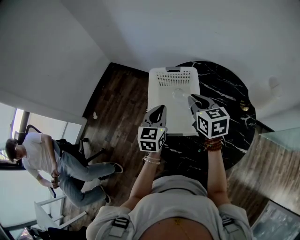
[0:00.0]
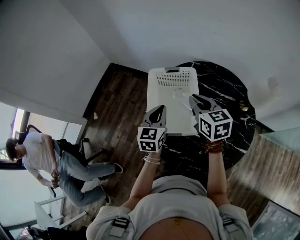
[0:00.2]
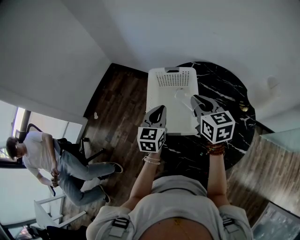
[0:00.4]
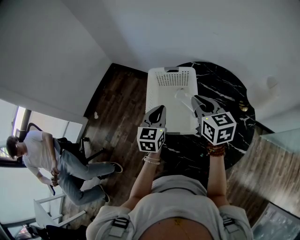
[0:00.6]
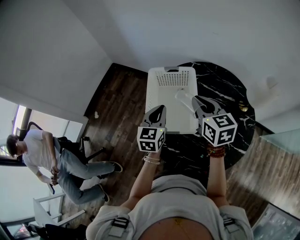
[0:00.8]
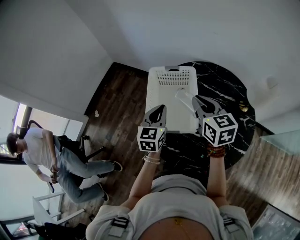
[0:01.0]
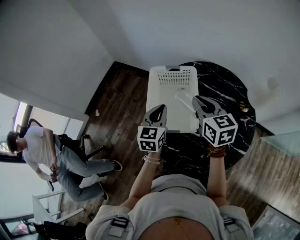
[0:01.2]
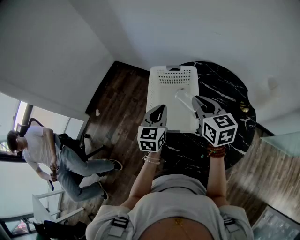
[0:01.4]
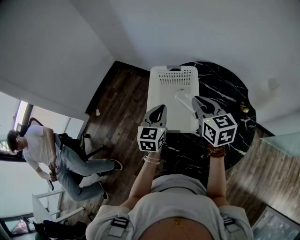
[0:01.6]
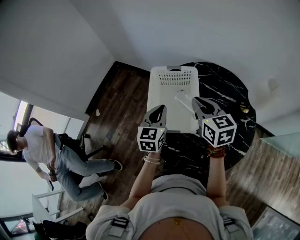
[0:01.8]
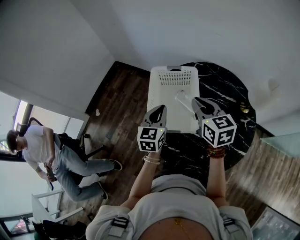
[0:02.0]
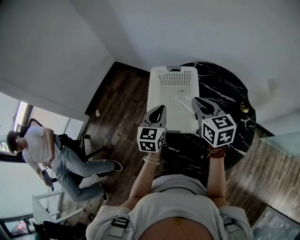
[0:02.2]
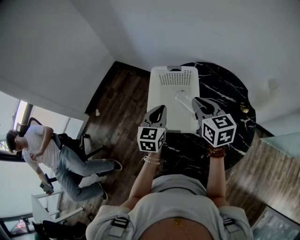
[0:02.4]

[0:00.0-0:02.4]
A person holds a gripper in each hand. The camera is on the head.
0:00.0 to 0:01.2: The right gripper moves some 5 cm.
0:01.2 to 0:02.4: Both grippers stay about where they are.

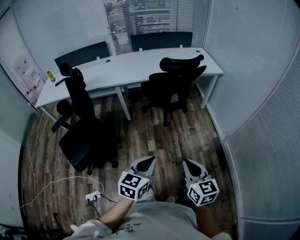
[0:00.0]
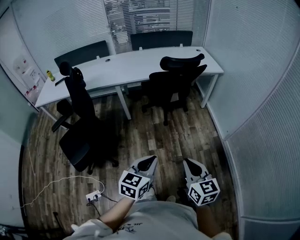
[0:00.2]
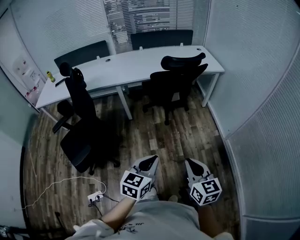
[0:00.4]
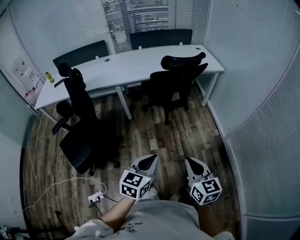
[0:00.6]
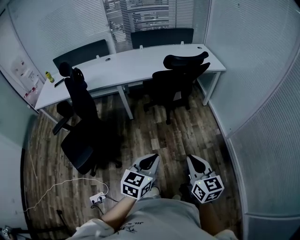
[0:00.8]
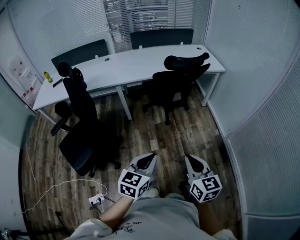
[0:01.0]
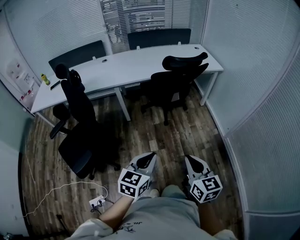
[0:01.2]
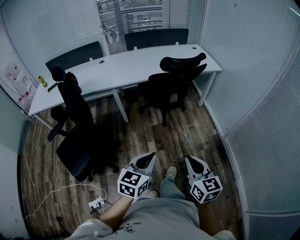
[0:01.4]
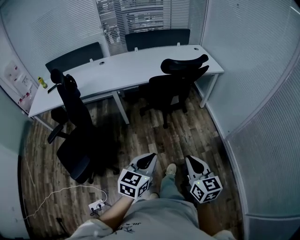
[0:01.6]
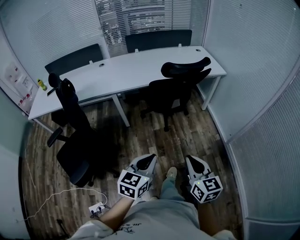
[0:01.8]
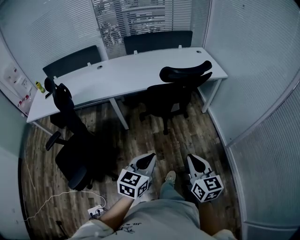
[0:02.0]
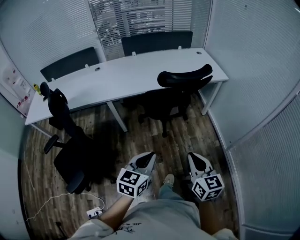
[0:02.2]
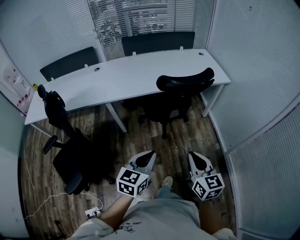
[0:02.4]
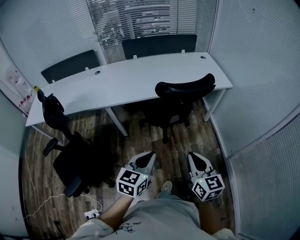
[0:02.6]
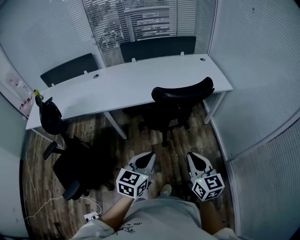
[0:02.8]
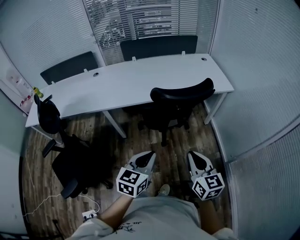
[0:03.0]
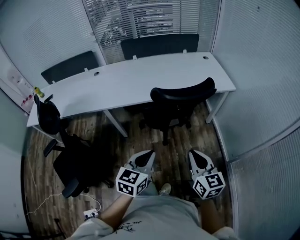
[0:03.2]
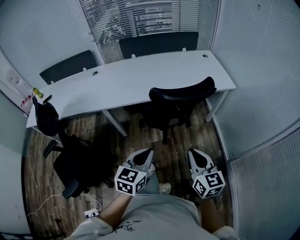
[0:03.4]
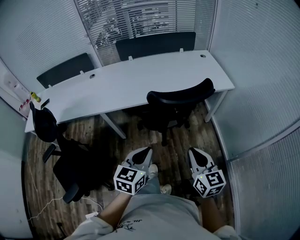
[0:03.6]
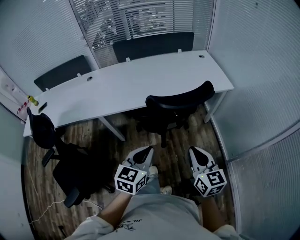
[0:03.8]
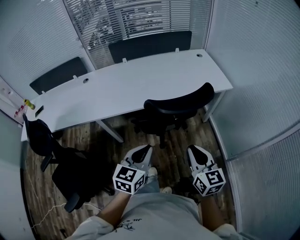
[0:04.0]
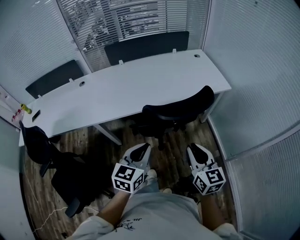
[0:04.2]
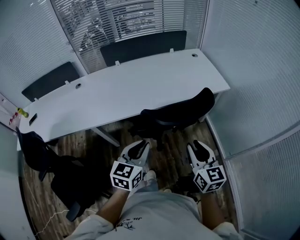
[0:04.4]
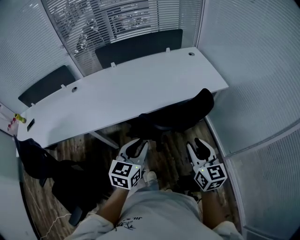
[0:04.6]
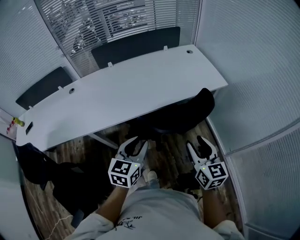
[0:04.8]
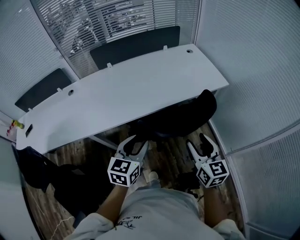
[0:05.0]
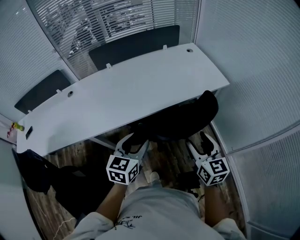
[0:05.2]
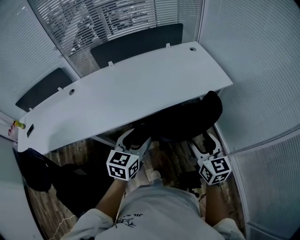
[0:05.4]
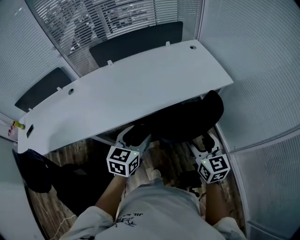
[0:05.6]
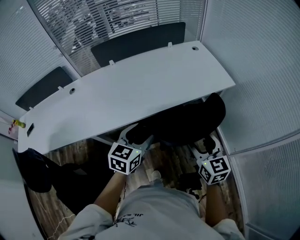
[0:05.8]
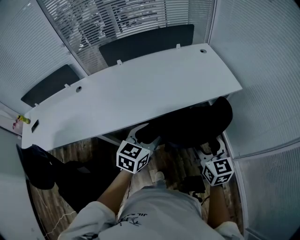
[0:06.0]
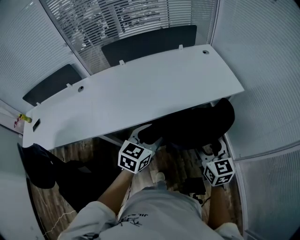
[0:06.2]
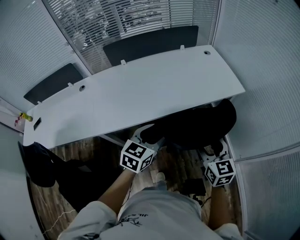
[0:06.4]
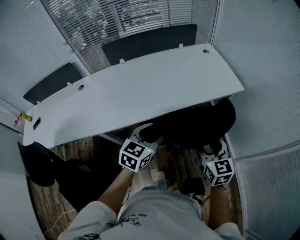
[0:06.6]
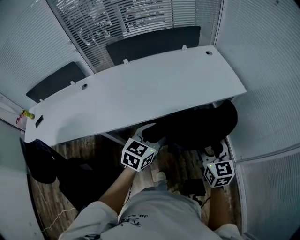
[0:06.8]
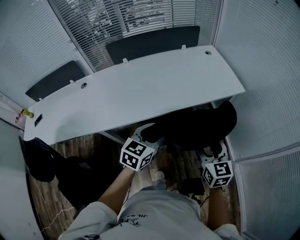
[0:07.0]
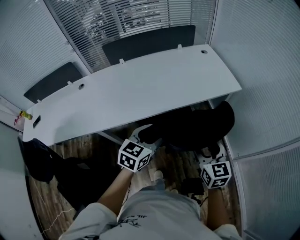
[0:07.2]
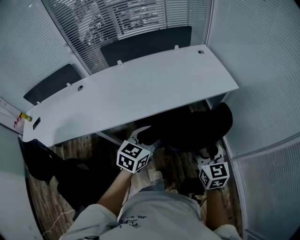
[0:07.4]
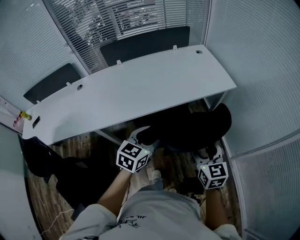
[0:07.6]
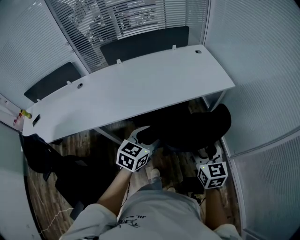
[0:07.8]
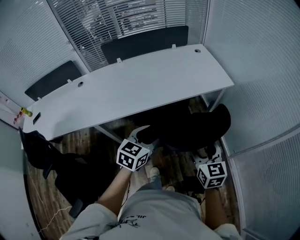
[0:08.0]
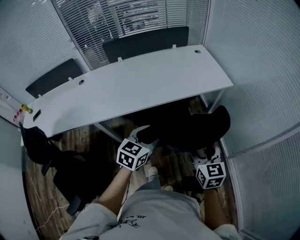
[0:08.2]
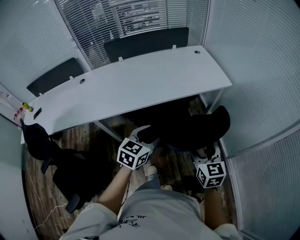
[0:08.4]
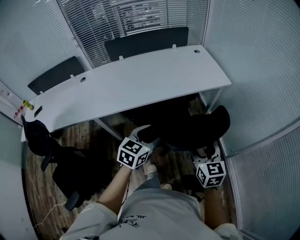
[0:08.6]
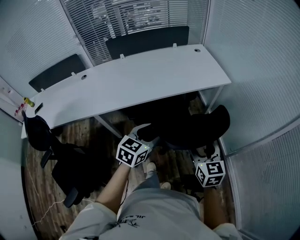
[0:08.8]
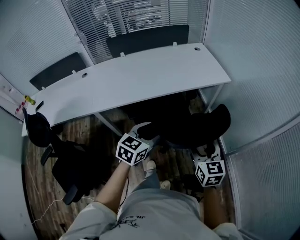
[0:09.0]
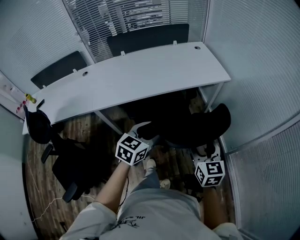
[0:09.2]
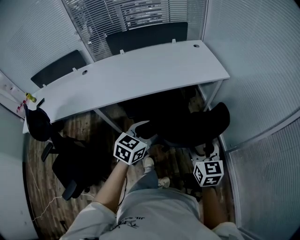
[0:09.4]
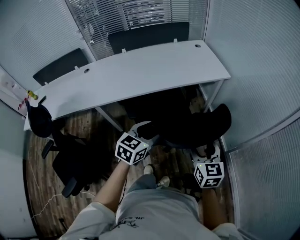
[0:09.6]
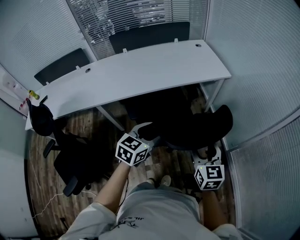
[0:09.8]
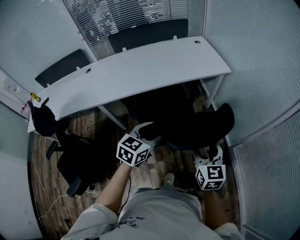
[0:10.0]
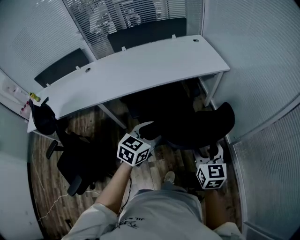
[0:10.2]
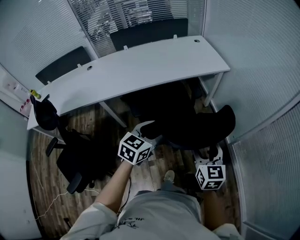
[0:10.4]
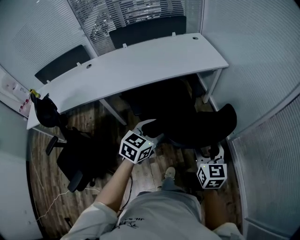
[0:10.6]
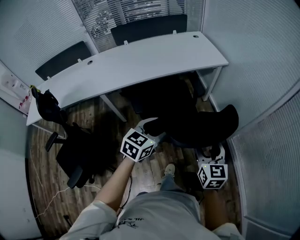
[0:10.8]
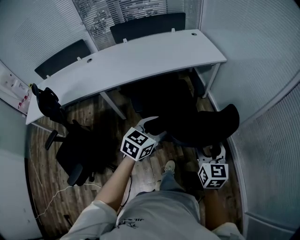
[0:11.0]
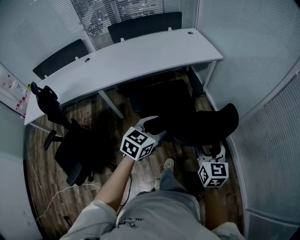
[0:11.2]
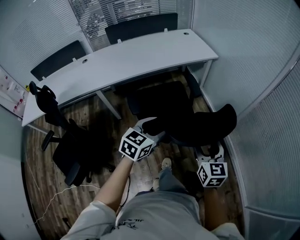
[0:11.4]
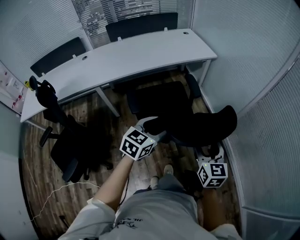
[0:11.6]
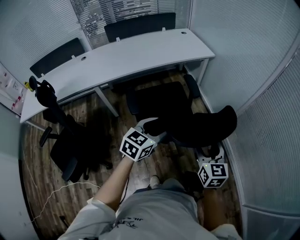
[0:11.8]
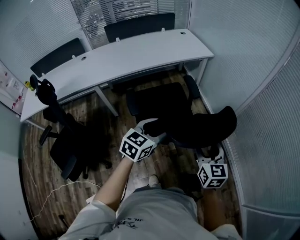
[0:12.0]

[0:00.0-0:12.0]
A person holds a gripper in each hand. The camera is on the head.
0:00.0 to 0:01.6: The left gripper travels forward and to the left by approximately 10 cm. The right gripper is displaced forward by about 10 cm.
0:01.6 to 0:03.0: Both grippers move forward, some 30 cm.
0:03.0 to 0:04.4: Both grippers travel together forward, approximately 15 cm.
0:04.4 to 0:06.0: The two grippers go approximately 15 cm forward. The left gripper opens up; the right gripper opens up.
0:06.0 to 0:07.6: The two grippers go about 5 cm backward.
0:07.6 to 0:09.0: The grippers both shift backward and to the right by about 10 cm.
0:09.0 to 0:10.4: The grippers both shift backward by about 10 cm.
0:10.4 to 0:12.0: The two grippers go approximately 20 cm backward and to the right.

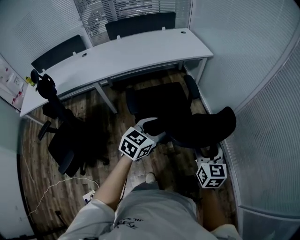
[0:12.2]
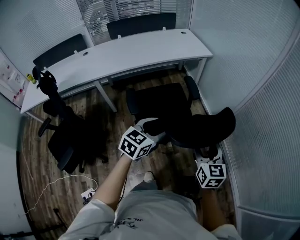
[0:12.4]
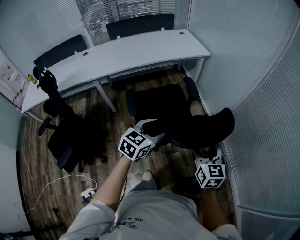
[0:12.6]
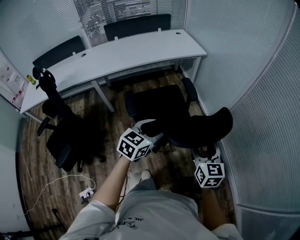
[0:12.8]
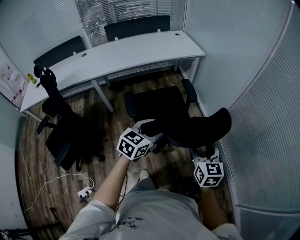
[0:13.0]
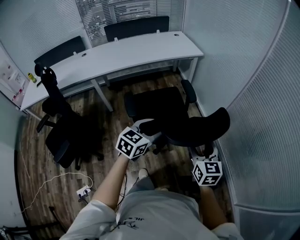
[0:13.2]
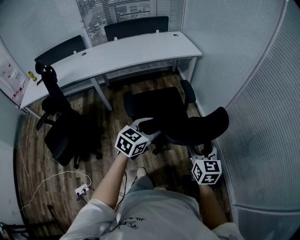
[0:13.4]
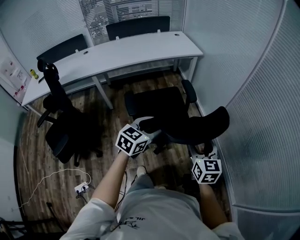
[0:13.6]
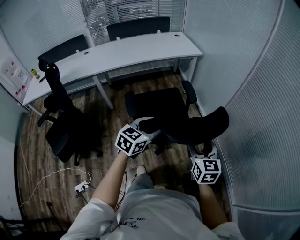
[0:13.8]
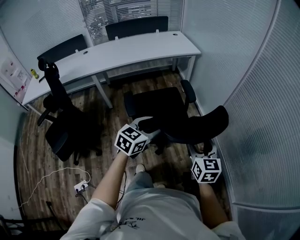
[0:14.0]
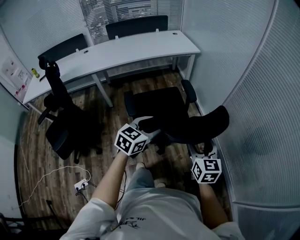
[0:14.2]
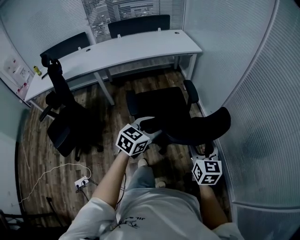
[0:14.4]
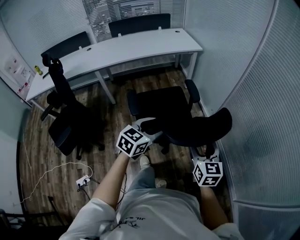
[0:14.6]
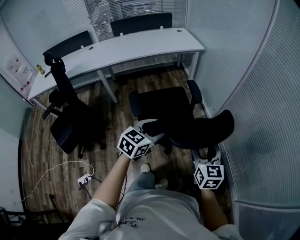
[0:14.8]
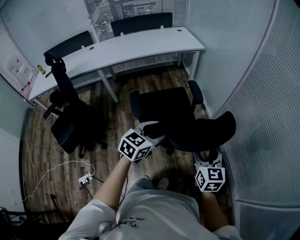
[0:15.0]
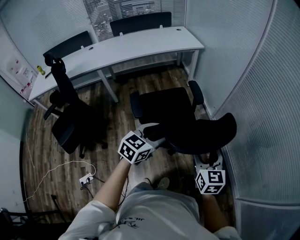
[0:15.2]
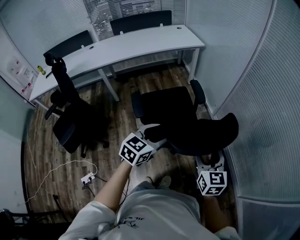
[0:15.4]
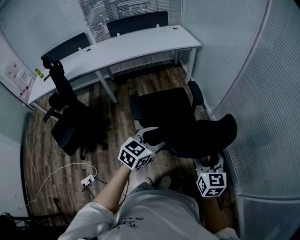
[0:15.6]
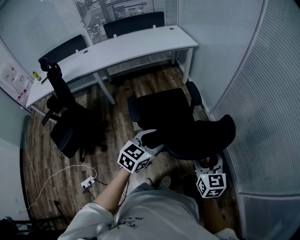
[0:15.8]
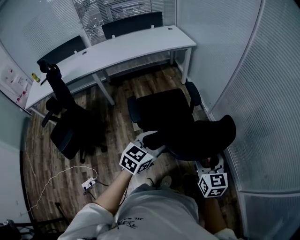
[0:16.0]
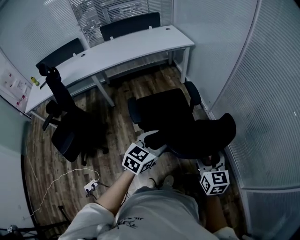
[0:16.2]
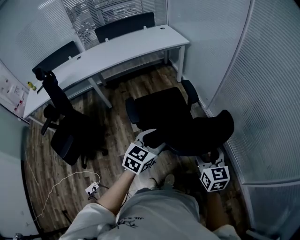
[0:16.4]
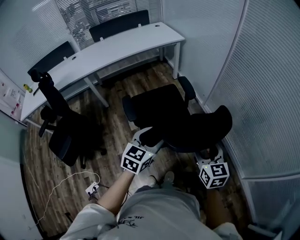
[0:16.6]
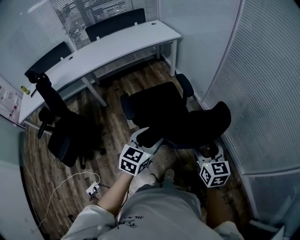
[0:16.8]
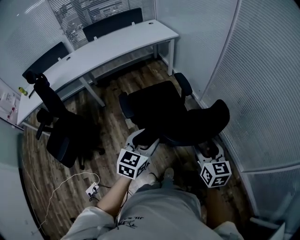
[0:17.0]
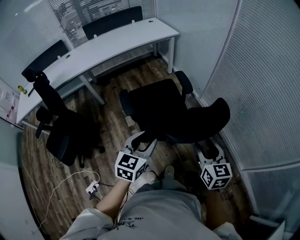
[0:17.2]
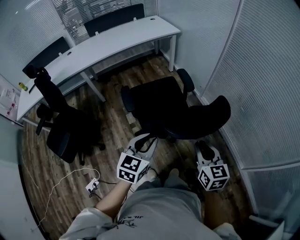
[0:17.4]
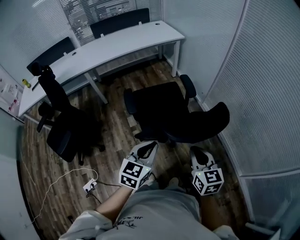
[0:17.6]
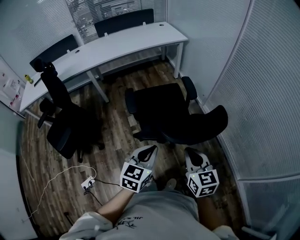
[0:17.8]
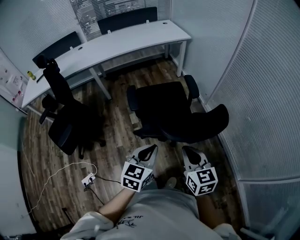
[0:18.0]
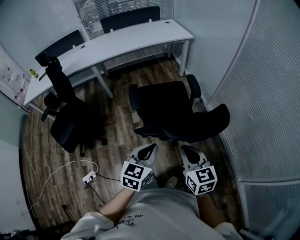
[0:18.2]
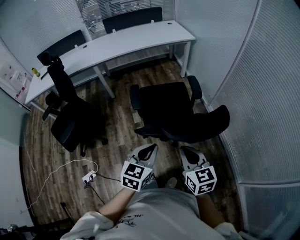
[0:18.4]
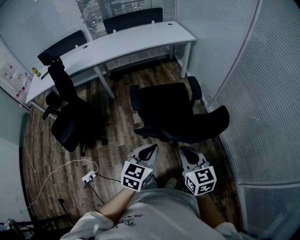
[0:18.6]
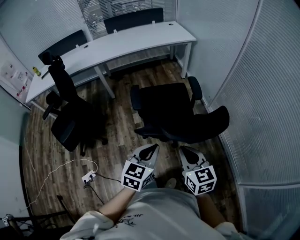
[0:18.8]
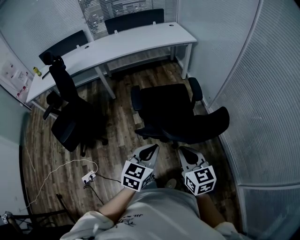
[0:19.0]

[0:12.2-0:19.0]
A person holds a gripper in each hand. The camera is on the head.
0:12.2 to 0:13.6: Both grippers travel together to the right and backward, about 15 cm.
0:13.6 to 0:15.0: Both grippers travel together backward and to the right, some 10 cm.
0:15.0 to 0:16.2: Both grippers travel together backward, some 5 cm.
0:16.2 to 0:17.6: The grippers both shift backward by roughly 10 cm. The right gripper closes up; the left gripper closes its fingers.
0:17.6 to 0:19.0: The right gripper is displaced to the left by approximately 5 cm.

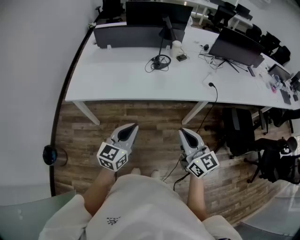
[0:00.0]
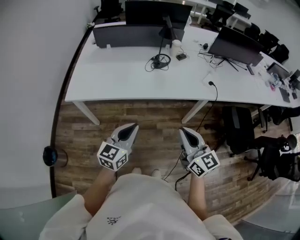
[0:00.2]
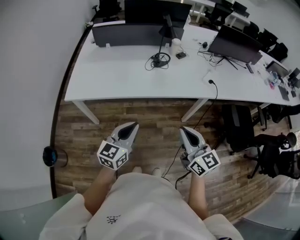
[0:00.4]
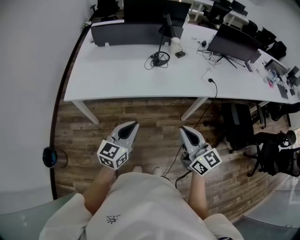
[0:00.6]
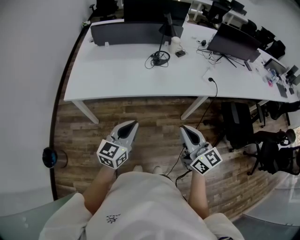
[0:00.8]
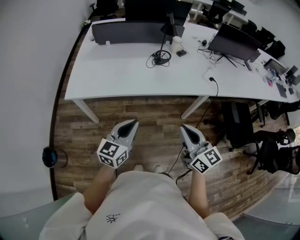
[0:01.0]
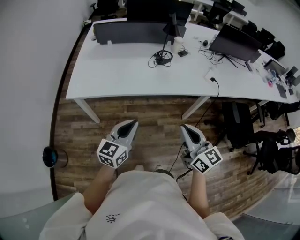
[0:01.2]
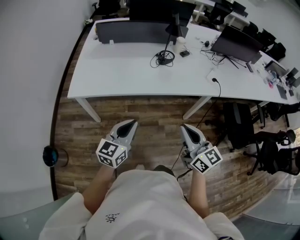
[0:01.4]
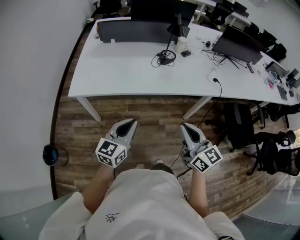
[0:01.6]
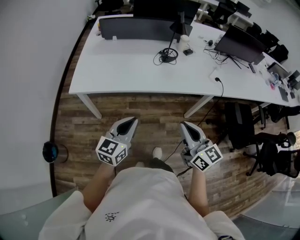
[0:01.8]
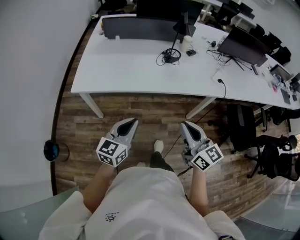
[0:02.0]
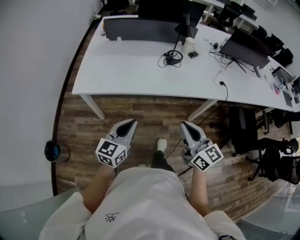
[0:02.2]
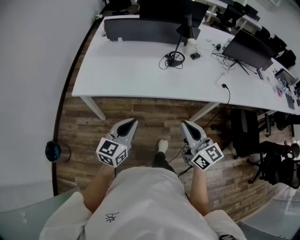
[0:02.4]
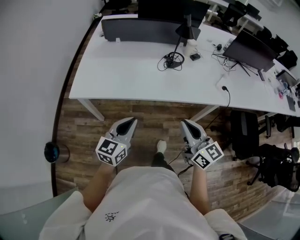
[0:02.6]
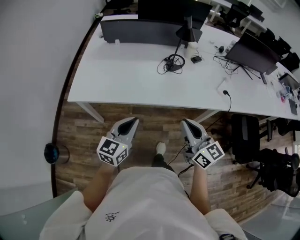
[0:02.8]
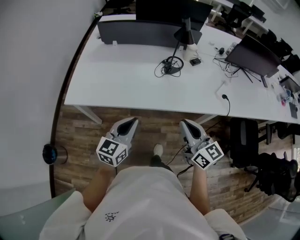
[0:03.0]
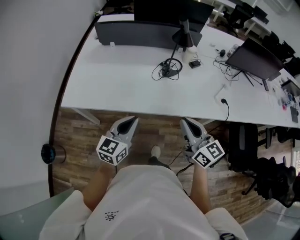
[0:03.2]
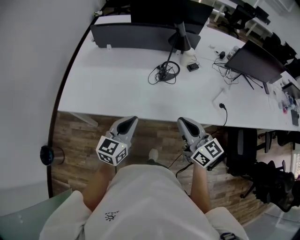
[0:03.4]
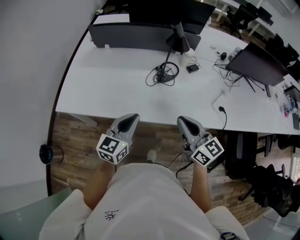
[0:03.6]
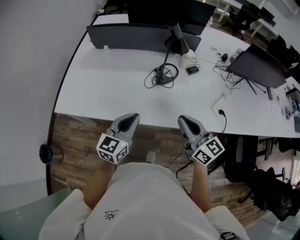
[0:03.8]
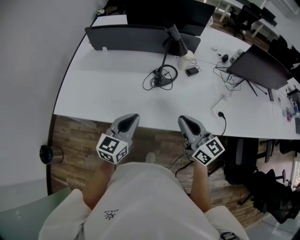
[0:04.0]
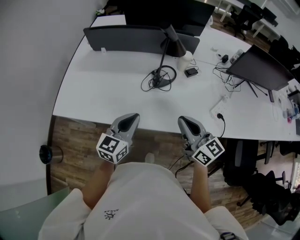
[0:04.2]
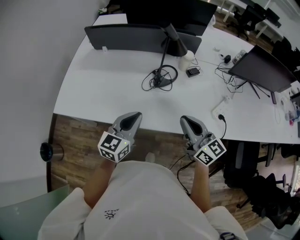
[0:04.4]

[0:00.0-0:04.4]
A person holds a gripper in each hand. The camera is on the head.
0:00.0 to 0:01.4: Both grippers travel together to the left, some 10 cm.
0:01.4 to 0:03.0: Both grippers travel together forward, approximately 15 cm.
0:03.0 to 0:04.4: Both grippers move forward and to the right, some 25 cm.
